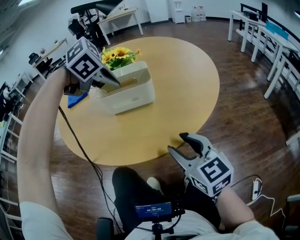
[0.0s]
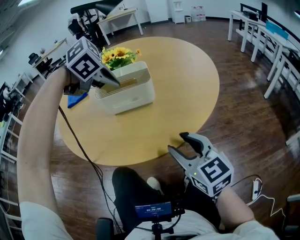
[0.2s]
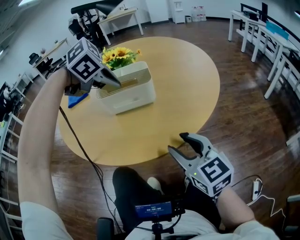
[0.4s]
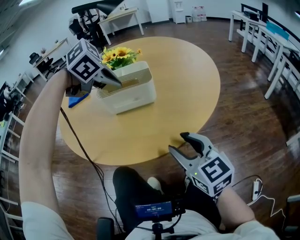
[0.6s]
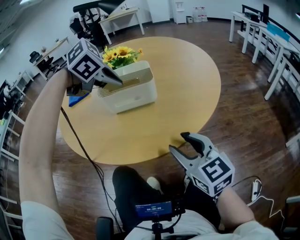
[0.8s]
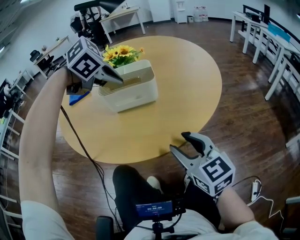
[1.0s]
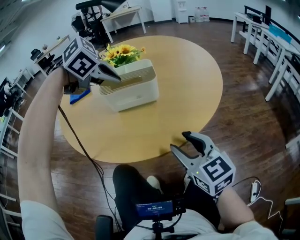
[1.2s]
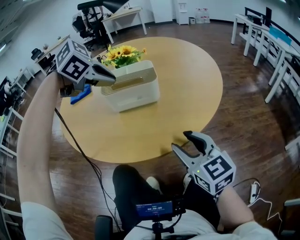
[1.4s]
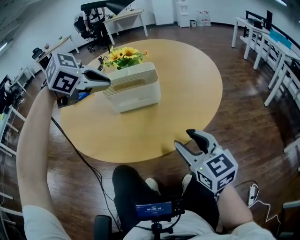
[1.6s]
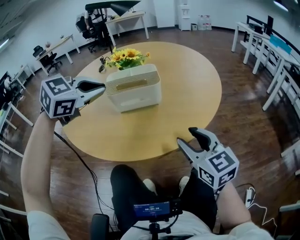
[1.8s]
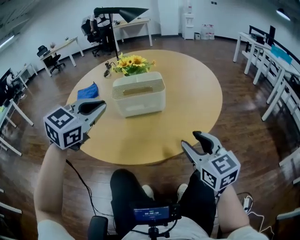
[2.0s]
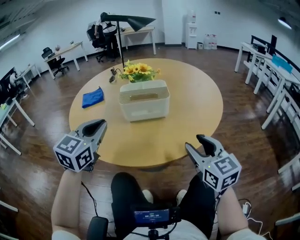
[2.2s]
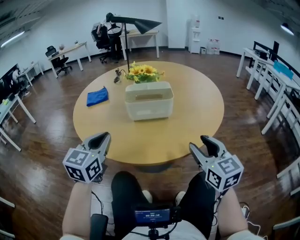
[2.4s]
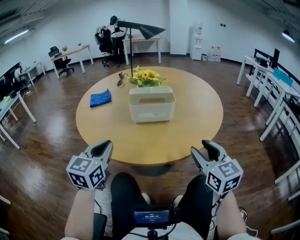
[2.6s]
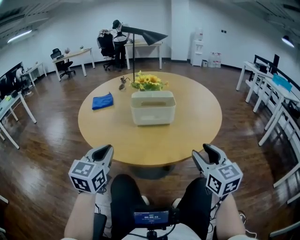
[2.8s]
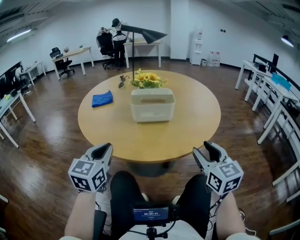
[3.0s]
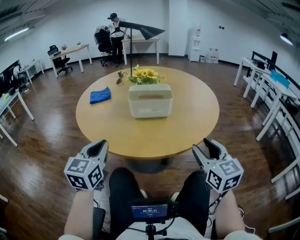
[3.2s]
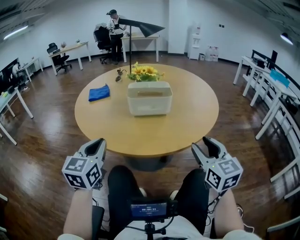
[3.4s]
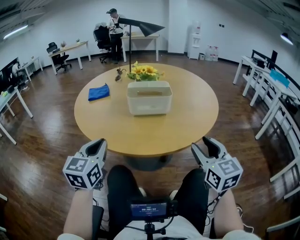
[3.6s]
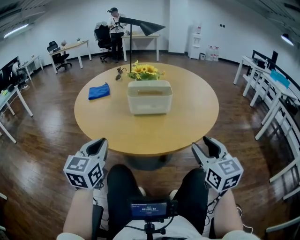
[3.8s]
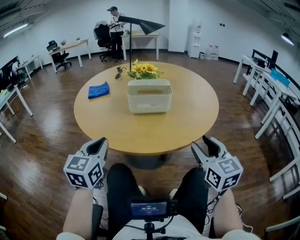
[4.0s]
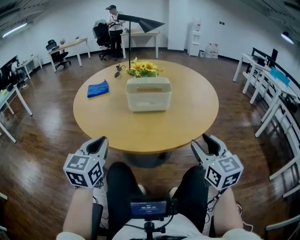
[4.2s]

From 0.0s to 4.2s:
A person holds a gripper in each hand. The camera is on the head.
From 0.0s to 1.4s: The grippers make only small movements.
From 1.4s to 2.8s: The left gripper heads backward and to the left, covering about 25 cm, and tips its fingers upward by roughly 50 degrees. Meanwhile the right gripper goes roughly 5 cm upward.
From 2.8s to 4.2s: There are only small adjustments of the grippers.

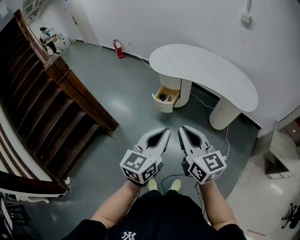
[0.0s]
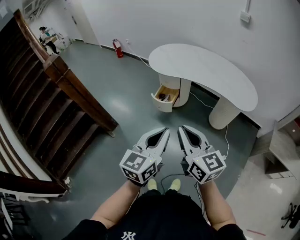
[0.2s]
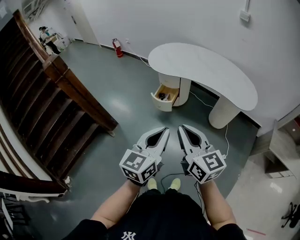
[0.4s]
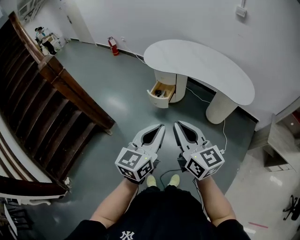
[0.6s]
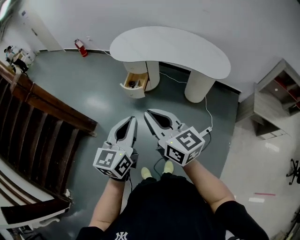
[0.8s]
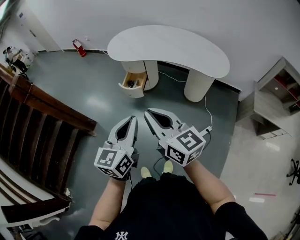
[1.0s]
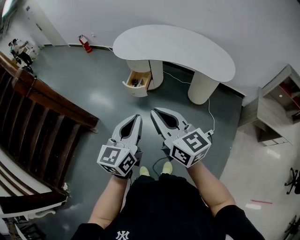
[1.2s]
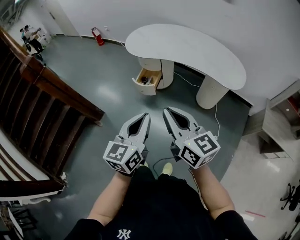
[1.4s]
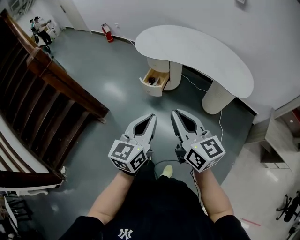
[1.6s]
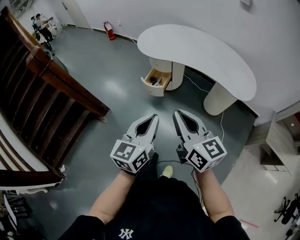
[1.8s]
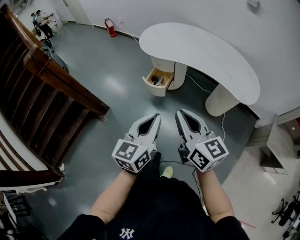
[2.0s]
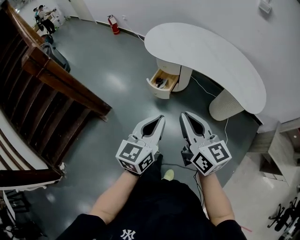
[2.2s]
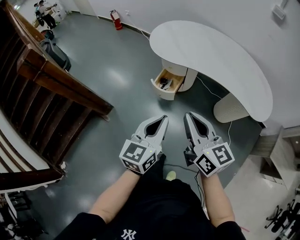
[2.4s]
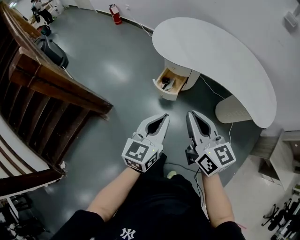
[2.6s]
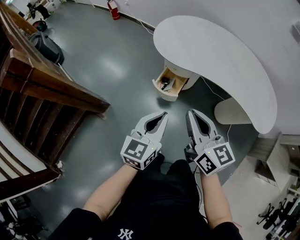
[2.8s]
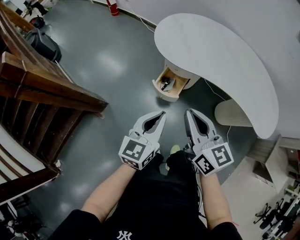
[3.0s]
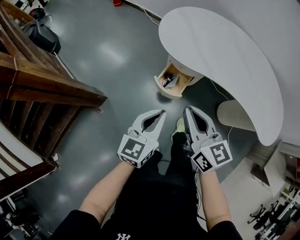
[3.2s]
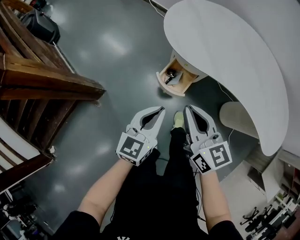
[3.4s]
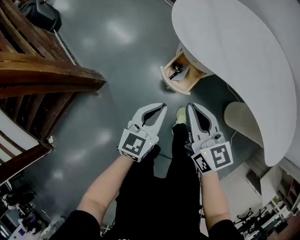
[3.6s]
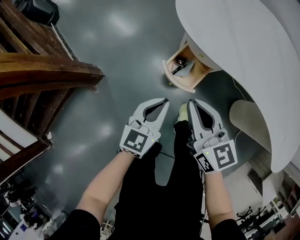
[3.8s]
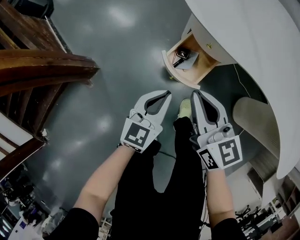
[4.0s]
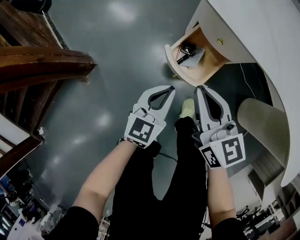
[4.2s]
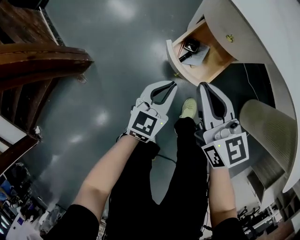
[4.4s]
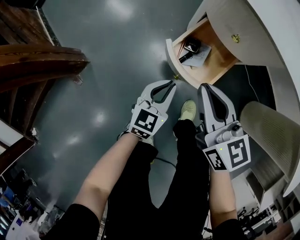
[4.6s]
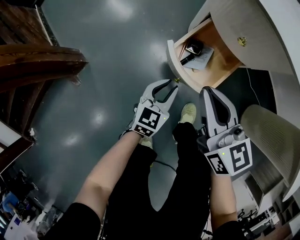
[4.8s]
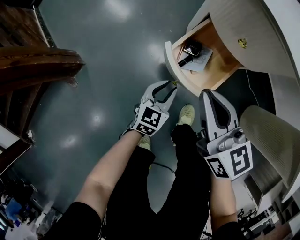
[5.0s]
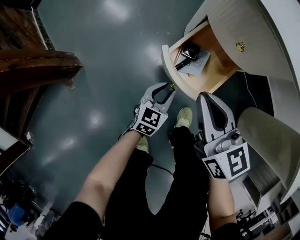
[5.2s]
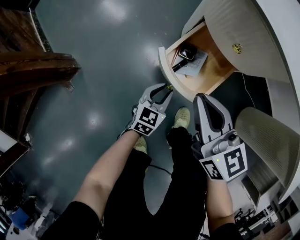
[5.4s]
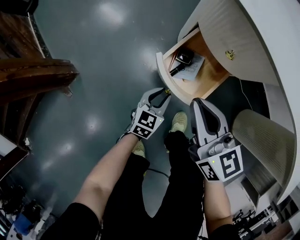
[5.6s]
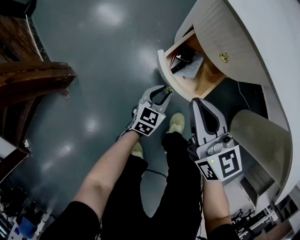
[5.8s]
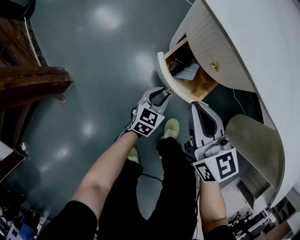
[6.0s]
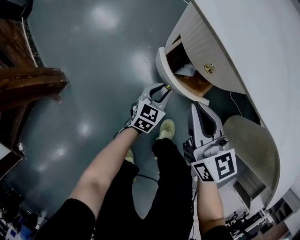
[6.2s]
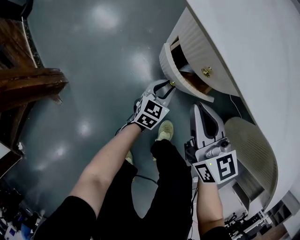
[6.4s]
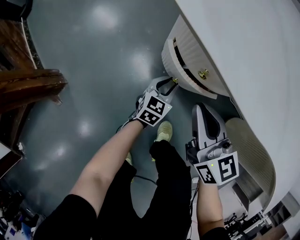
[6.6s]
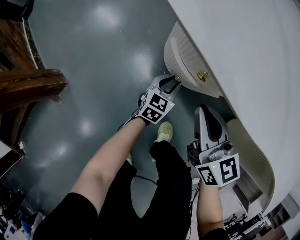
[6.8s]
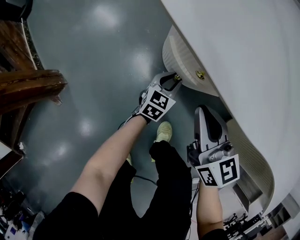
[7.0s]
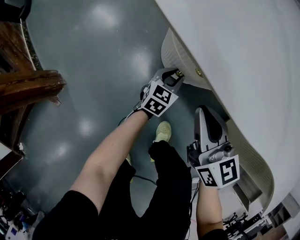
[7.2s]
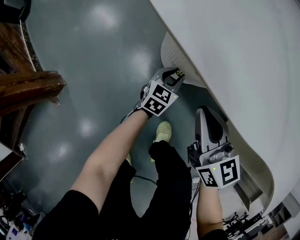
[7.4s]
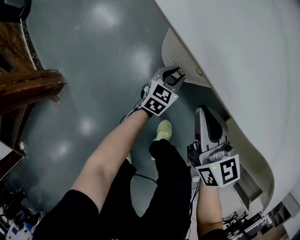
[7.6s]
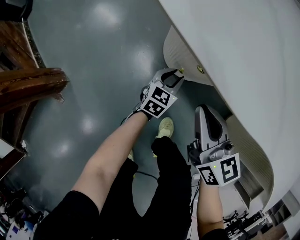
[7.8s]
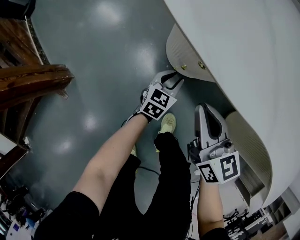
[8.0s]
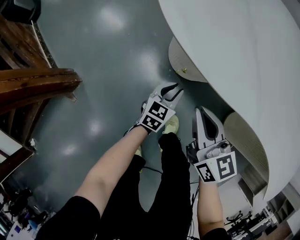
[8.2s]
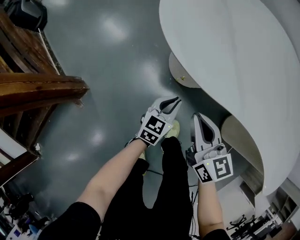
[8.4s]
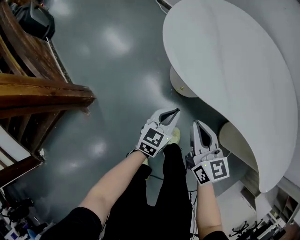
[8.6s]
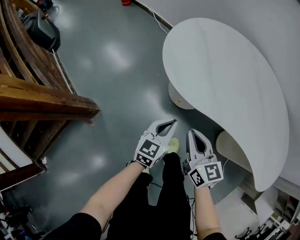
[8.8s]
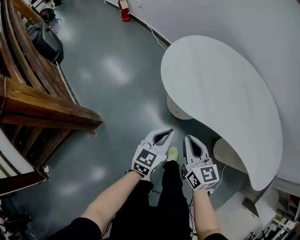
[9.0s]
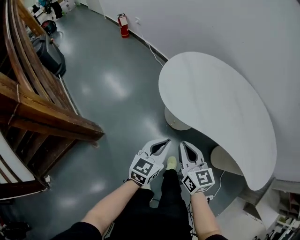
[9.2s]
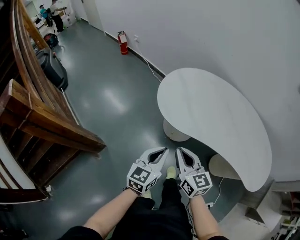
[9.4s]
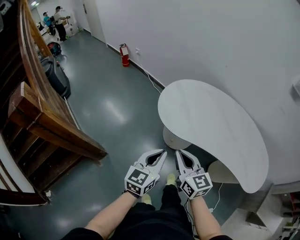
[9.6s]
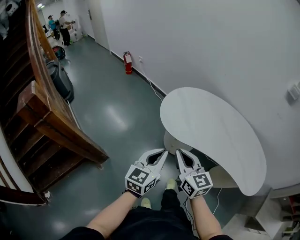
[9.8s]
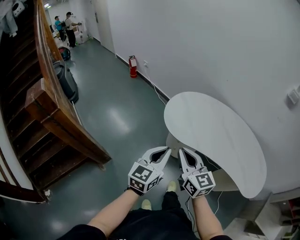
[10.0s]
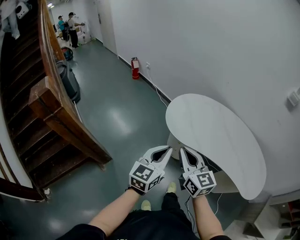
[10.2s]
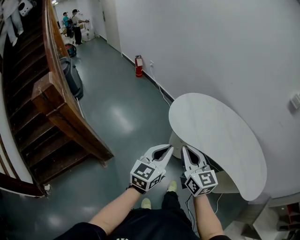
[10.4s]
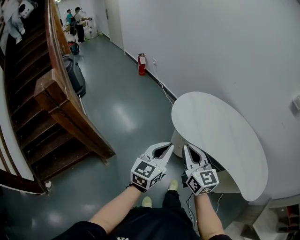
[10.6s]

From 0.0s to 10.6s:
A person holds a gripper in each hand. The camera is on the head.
From 0.0s to 1.6s: The left gripper ends up approximately 5 cm from where it was, while the right gripper shifts approximately 5 cm to the right.
From 1.6s to 3.0s: The two grippers go roughly 35 cm forward.
From 3.0s to 4.6s: The right gripper goes roughly 50 cm downward and forward, while the left gripper shifts roughly 50 cm downward.
From 4.6s to 6.0s: The right gripper moves roughly 5 cm, while the left gripper travels downward, forward and to the right by roughly 15 cm, and opens its fingers.
From 6.0s to 7.6s: The left gripper shifts roughly 15 cm forward and to the right; the right gripper moves to the right, some 5 cm.
From 7.6s to 9.0s: The right gripper is displaced upward by approximately 30 cm; the left gripper shifts approximately 50 cm upward, and closes.
From 9.0s to 10.6s: Both grippers move upward, about 25 cm.

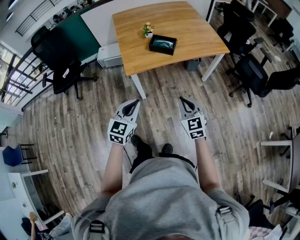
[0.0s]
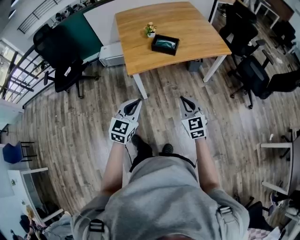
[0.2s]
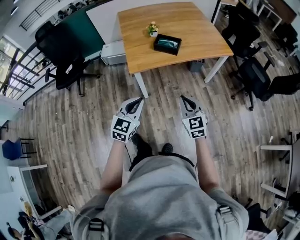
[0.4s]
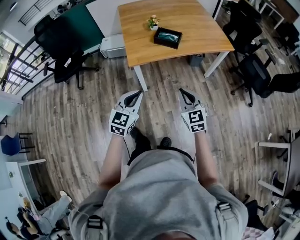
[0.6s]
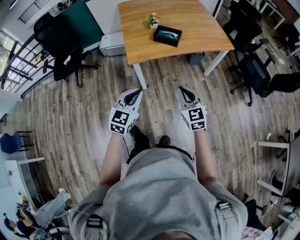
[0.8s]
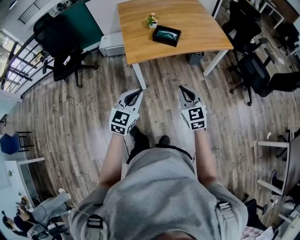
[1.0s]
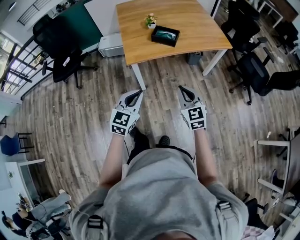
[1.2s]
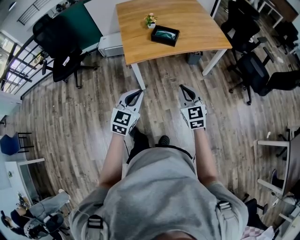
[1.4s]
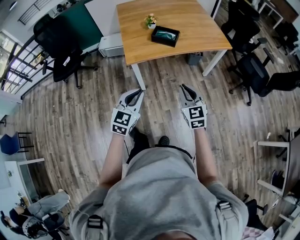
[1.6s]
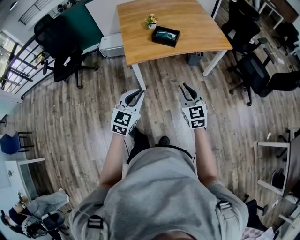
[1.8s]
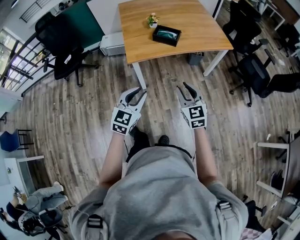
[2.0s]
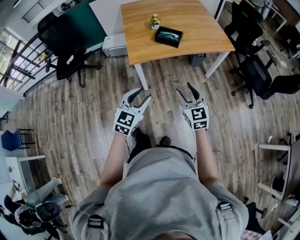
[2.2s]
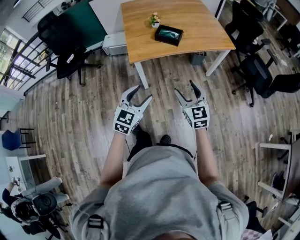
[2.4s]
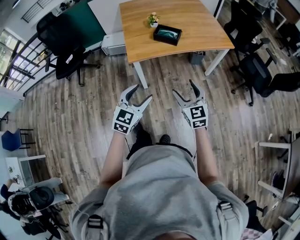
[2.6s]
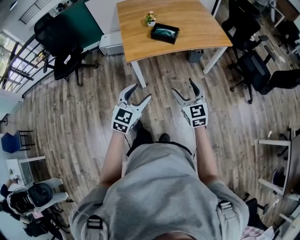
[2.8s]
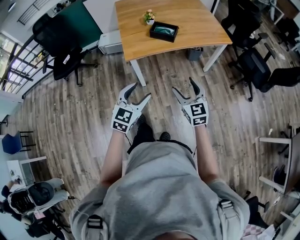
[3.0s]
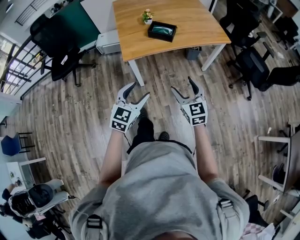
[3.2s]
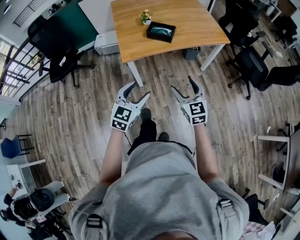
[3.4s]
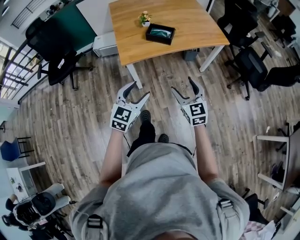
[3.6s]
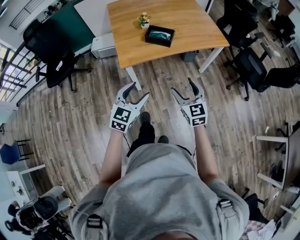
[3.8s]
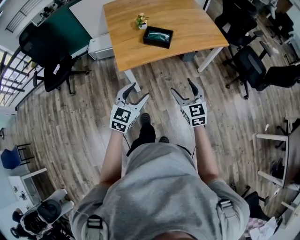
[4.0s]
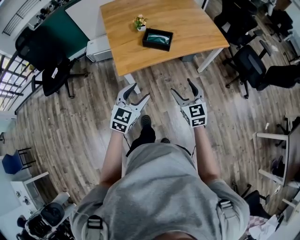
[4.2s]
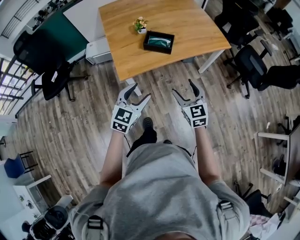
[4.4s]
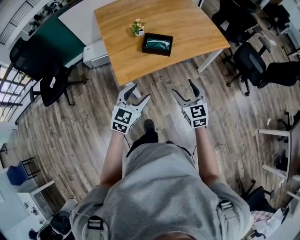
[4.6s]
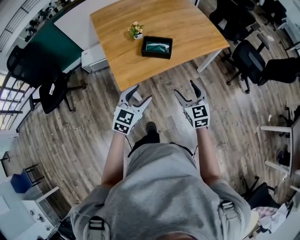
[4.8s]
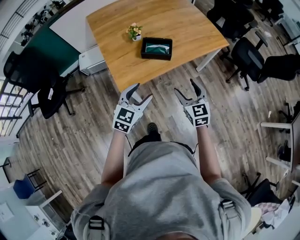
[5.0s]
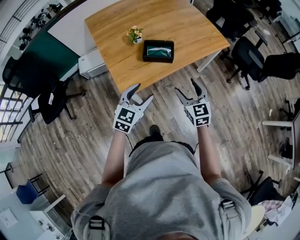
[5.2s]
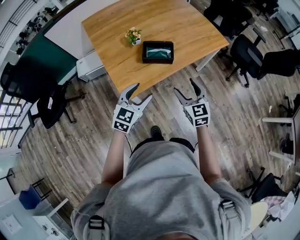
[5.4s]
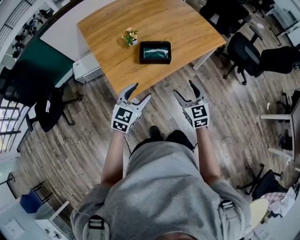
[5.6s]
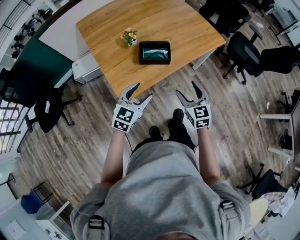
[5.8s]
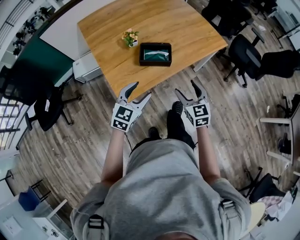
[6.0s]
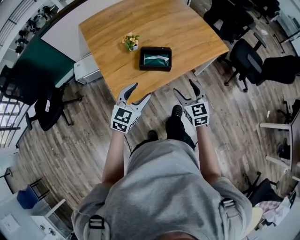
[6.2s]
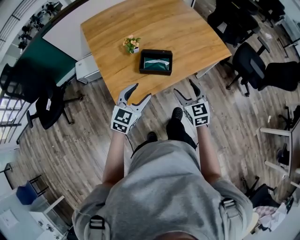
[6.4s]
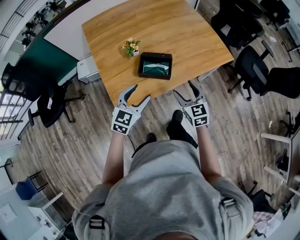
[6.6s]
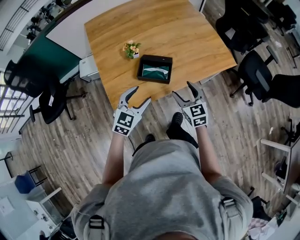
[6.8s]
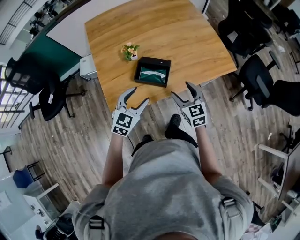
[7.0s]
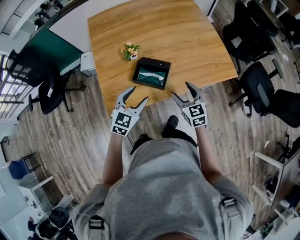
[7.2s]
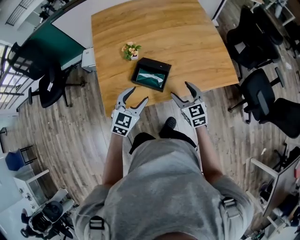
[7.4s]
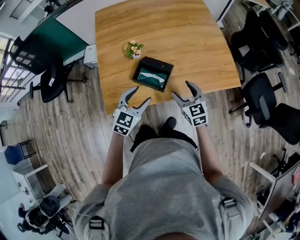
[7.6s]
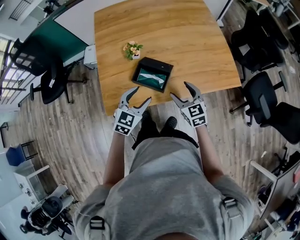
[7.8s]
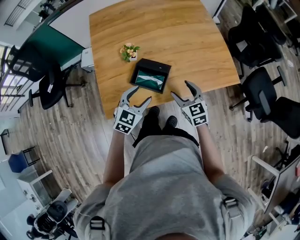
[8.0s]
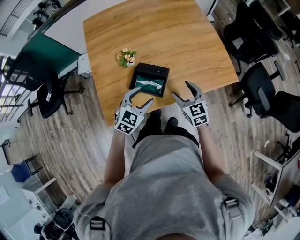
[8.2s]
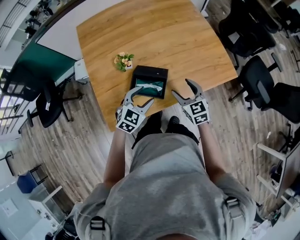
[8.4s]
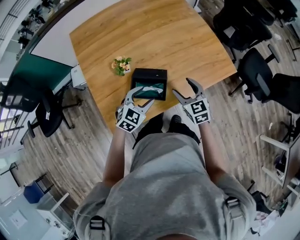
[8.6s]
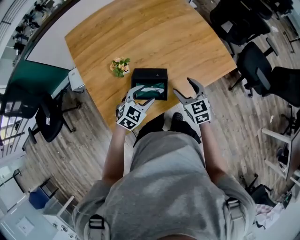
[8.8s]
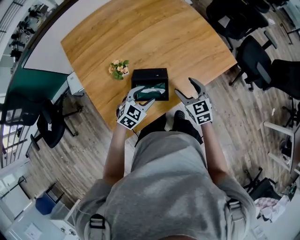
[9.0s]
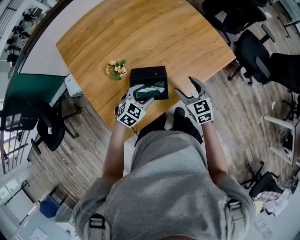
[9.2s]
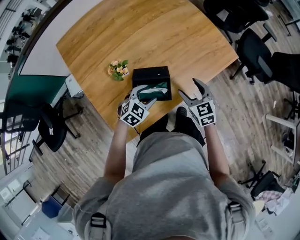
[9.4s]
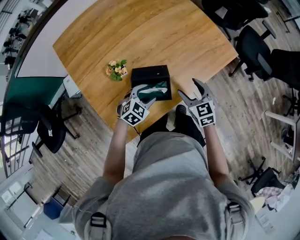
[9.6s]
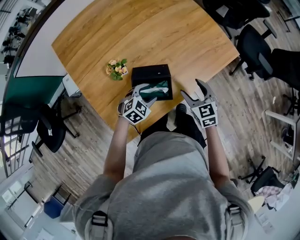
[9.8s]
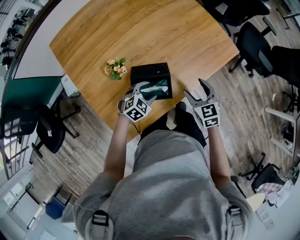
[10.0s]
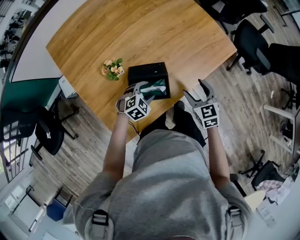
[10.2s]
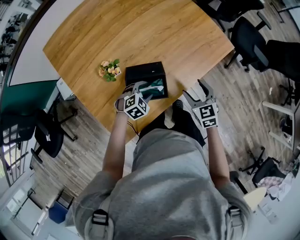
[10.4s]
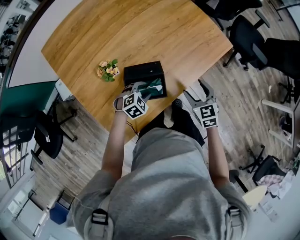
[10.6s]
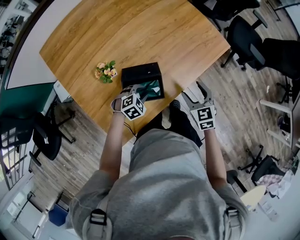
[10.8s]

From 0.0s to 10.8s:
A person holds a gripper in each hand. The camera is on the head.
From 0.0s to 1.6s: There are only small adjustments of the grippers.
From 1.6s to 3.0s: The left gripper opens up. Meanwhile the right gripper opens.
From 3.0s to 4.6s: Both grippers travel together forward, some 20 cm.
From 4.6s to 6.2s: The grippers both shift forward by approximately 15 cm.
From 6.2s to 7.8s: The left gripper is displaced forward and to the right by about 20 cm. Meanwhile the right gripper moves forward, roughly 20 cm, and turns by roughly 20 degrees.
From 7.8s to 9.2s: The left gripper travels downward by approximately 10 cm, and rotates roughly 40 degrees. Meanwhile the right gripper changes place by roughly 5 cm, and turns by some 20 degrees.
From 9.2s to 10.8s: The left gripper goes about 10 cm downward, turns by approximately 20 degrees, and closes up, while the right gripper is displaced to the right by about 5 cm.
